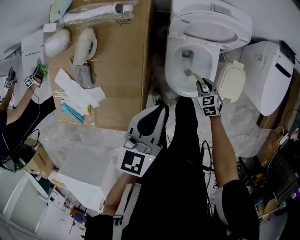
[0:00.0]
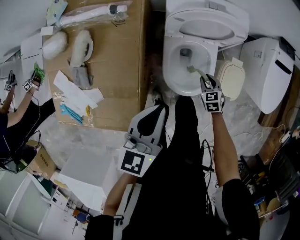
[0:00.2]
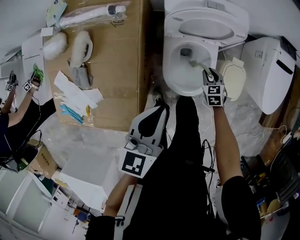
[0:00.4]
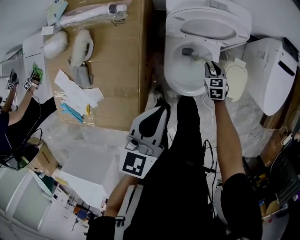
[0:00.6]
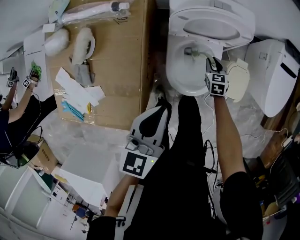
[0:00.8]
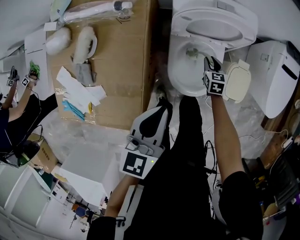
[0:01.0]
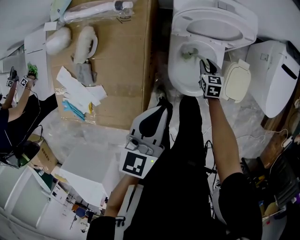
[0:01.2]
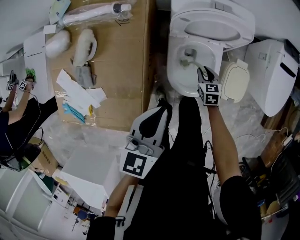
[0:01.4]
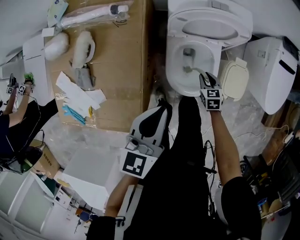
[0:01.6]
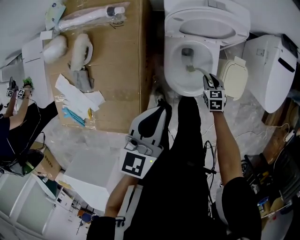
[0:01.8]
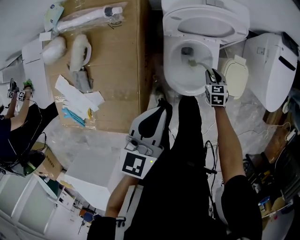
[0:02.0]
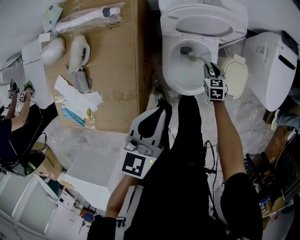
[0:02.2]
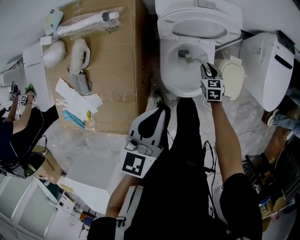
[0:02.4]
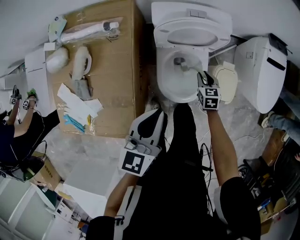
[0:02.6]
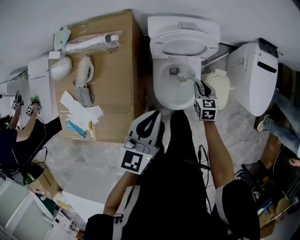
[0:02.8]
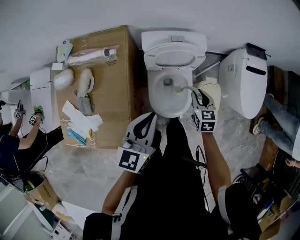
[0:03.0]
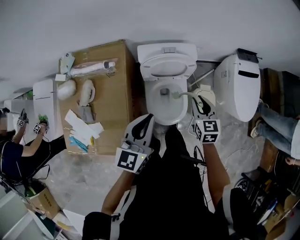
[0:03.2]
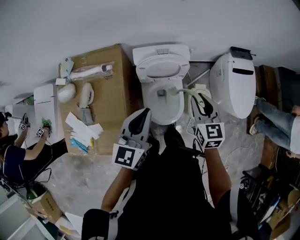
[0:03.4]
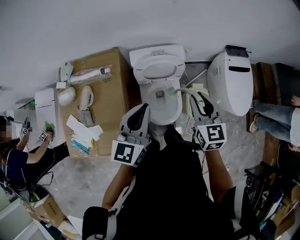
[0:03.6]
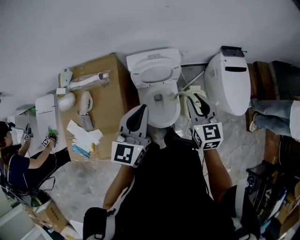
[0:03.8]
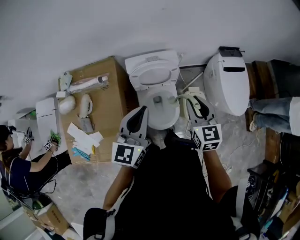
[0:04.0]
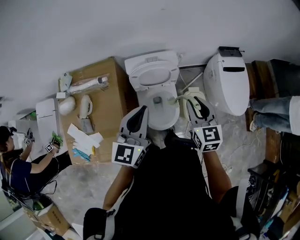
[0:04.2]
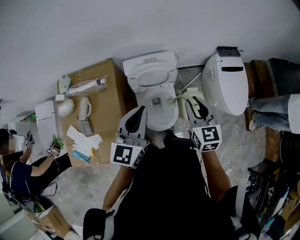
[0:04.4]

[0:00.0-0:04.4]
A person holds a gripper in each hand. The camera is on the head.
0:00.0 to 0:01.4: The right gripper shifts roughly 5 cm forward.
0:01.4 to 0:03.0: The right gripper heads upward, covering approximately 25 cm; the left gripper is displaced upward and to the right by some 15 cm.
0:03.0 to 0:04.4: The left gripper moves upward and to the right, roughly 15 cm. Meanwhile the right gripper is displaced upward by some 25 cm, and rotates approximately 20 degrees.

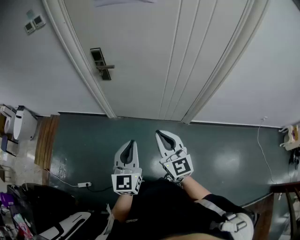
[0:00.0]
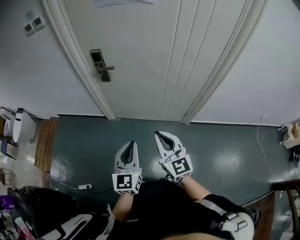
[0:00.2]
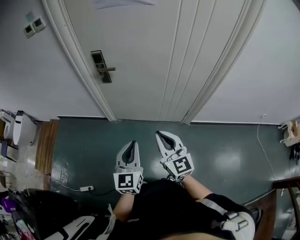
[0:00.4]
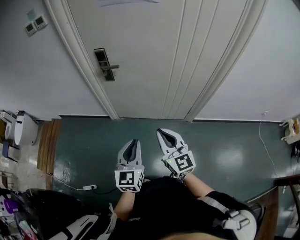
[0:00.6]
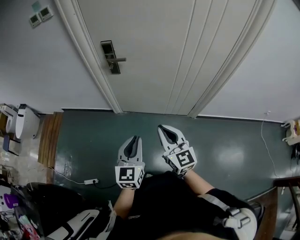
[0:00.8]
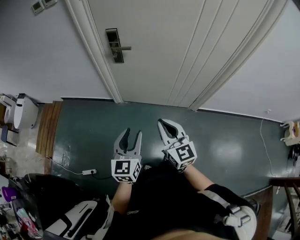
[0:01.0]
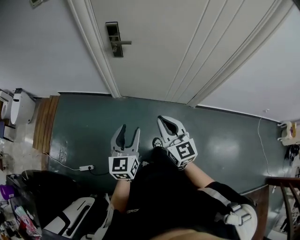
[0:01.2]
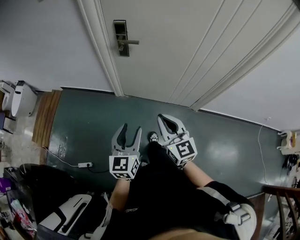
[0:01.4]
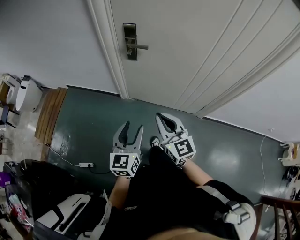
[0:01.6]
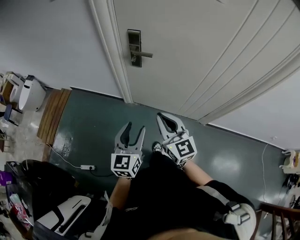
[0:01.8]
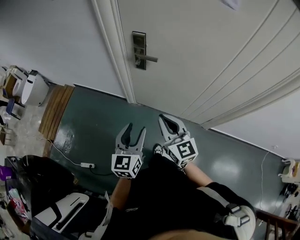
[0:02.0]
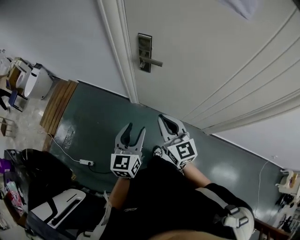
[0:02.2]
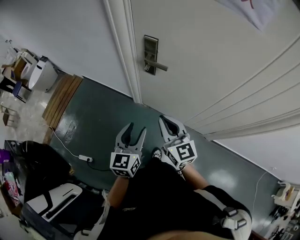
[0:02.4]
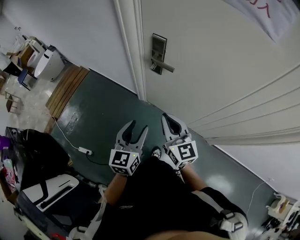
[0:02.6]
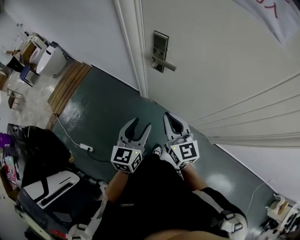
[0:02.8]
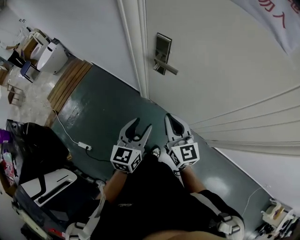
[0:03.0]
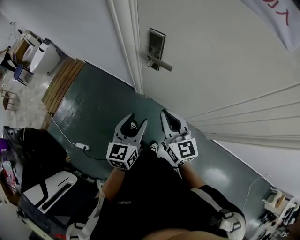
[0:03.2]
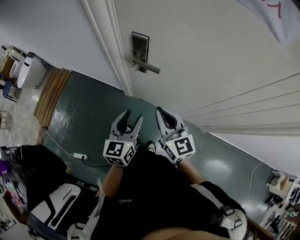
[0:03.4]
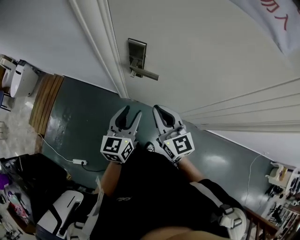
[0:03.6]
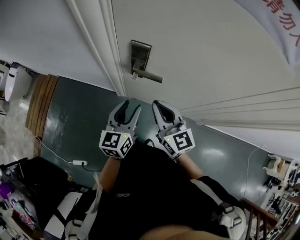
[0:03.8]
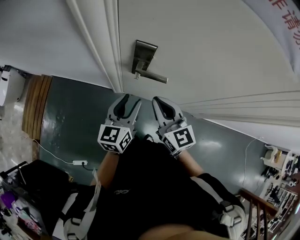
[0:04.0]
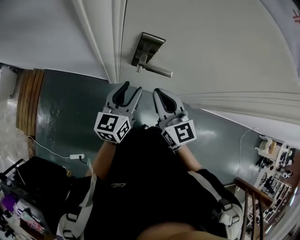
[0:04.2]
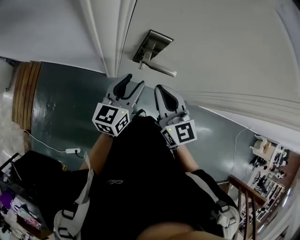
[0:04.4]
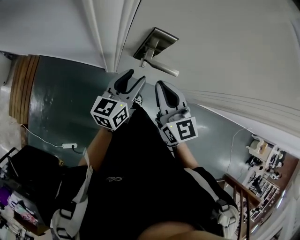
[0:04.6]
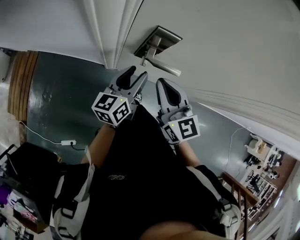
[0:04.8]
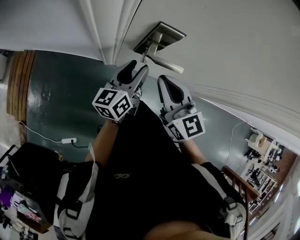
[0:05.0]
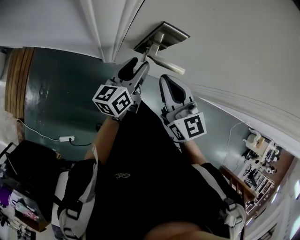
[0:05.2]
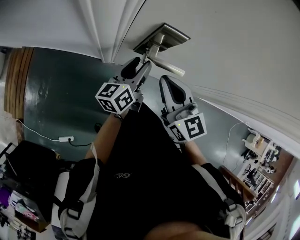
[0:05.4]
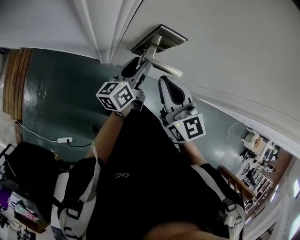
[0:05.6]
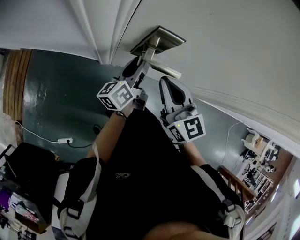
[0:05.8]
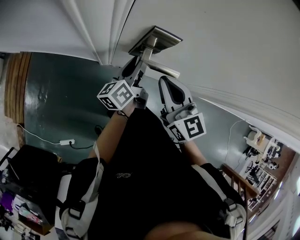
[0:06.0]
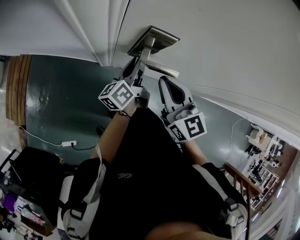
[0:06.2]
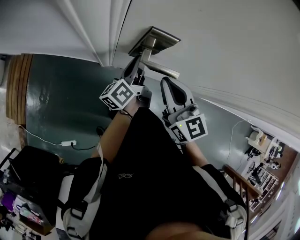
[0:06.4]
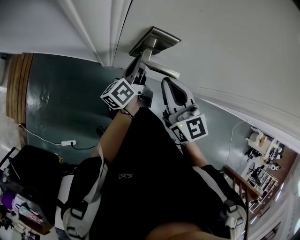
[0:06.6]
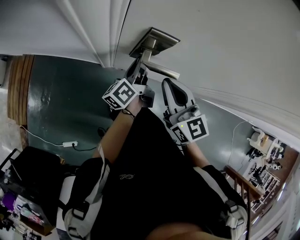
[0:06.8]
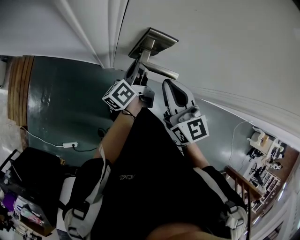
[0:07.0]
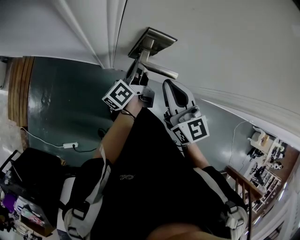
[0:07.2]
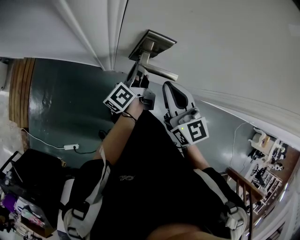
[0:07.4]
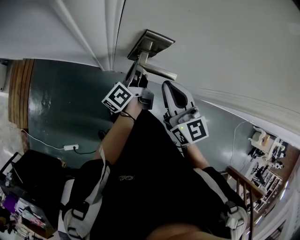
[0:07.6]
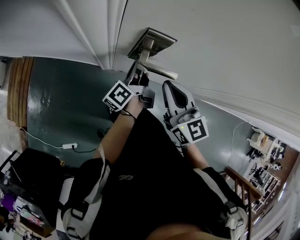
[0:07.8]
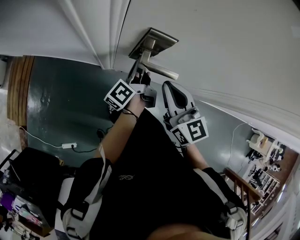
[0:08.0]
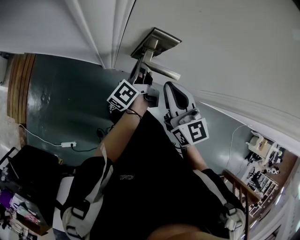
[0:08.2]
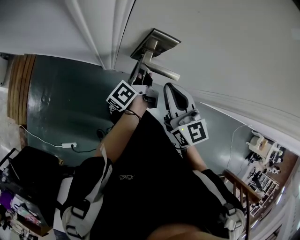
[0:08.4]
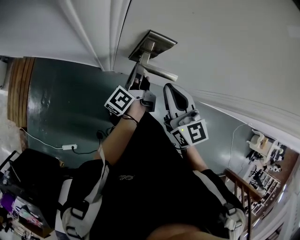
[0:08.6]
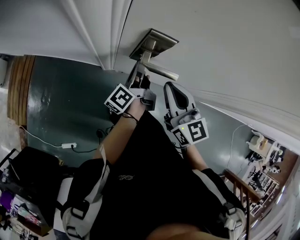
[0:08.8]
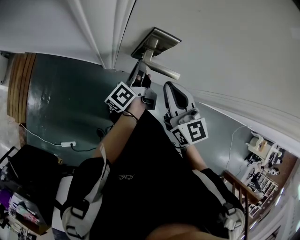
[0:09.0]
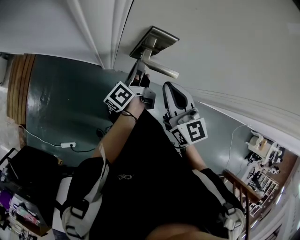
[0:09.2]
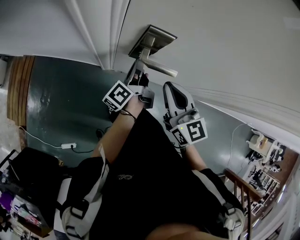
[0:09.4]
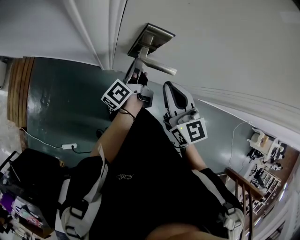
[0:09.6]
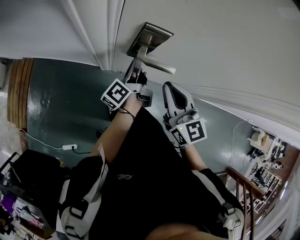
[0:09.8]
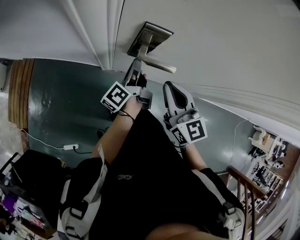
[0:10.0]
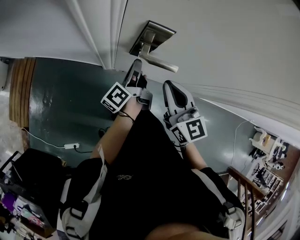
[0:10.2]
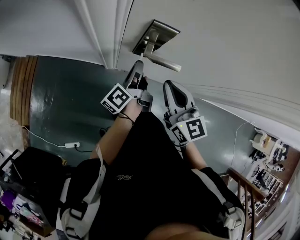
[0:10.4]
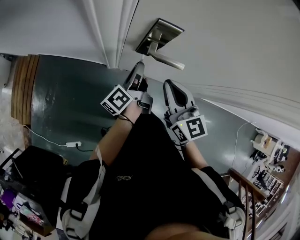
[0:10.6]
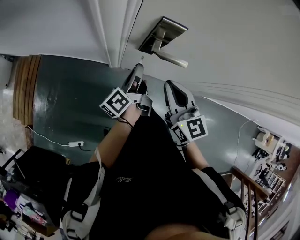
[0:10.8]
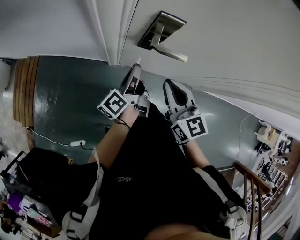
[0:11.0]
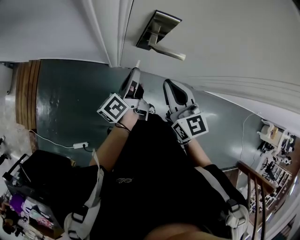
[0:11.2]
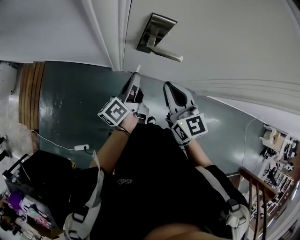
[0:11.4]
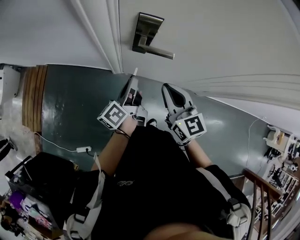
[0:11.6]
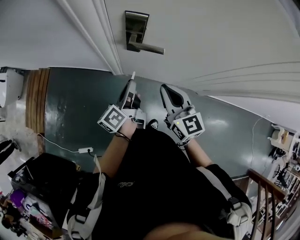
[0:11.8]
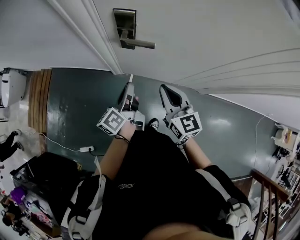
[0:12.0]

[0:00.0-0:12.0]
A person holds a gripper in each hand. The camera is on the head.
0:00.0 to 0:01.6: The left gripper is displaced to the left, forward and downward by about 15 cm, and opens up. Meanwhile the right gripper heads to the left and forward, covering about 15 cm.
0:01.6 to 0:03.0: The grippers both shift forward by about 20 cm.
0:03.0 to 0:04.4: The right gripper heads forward and to the left, covering roughly 20 cm. The left gripper goes some 25 cm forward, and turns by approximately 30 degrees.
0:04.4 to 0:06.0: The left gripper shifts roughly 10 cm downward and forward, and changes its angle by roughly 40 degrees.
0:06.0 to 0:07.6: The left gripper closes up.
0:07.6 to 0:10.4: The grippers make only small movements.
0:10.4 to 0:12.0: The left gripper travels backward by approximately 15 cm. The right gripper heads backward and to the right, covering roughly 15 cm.

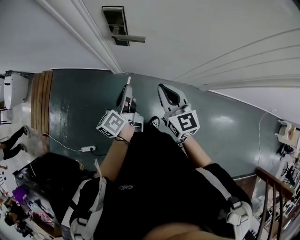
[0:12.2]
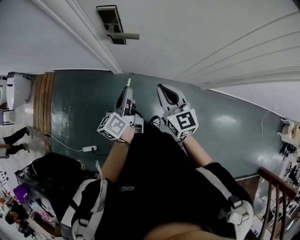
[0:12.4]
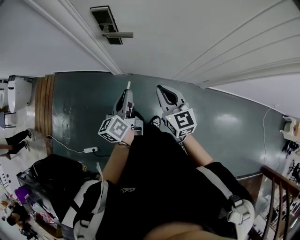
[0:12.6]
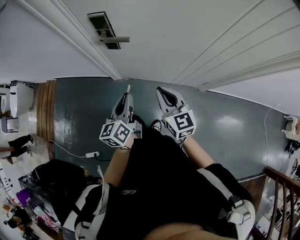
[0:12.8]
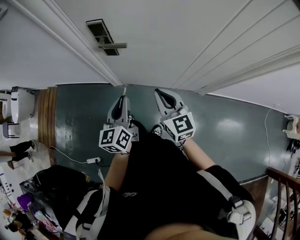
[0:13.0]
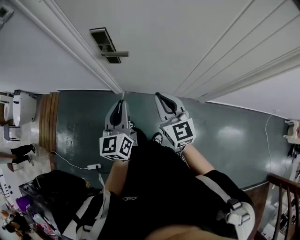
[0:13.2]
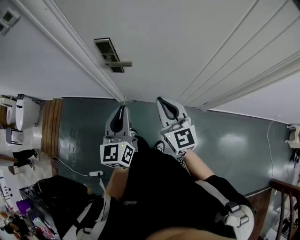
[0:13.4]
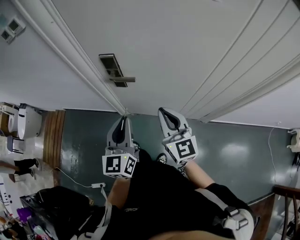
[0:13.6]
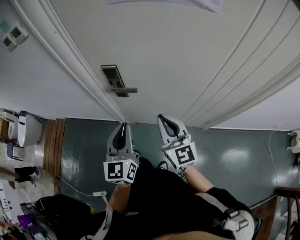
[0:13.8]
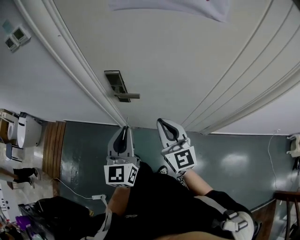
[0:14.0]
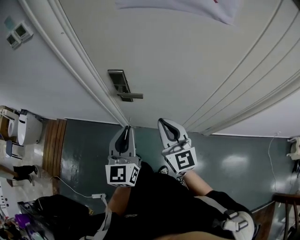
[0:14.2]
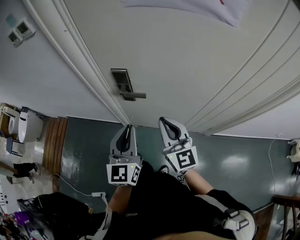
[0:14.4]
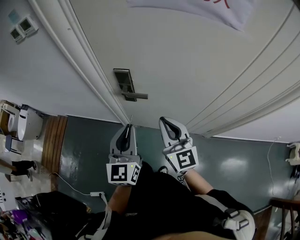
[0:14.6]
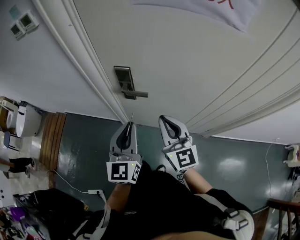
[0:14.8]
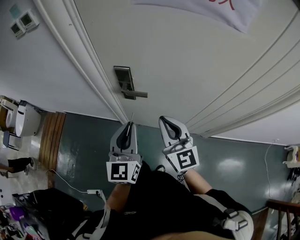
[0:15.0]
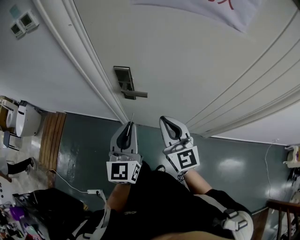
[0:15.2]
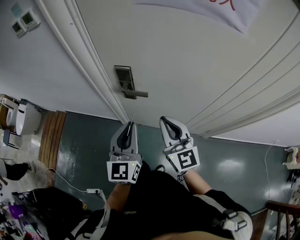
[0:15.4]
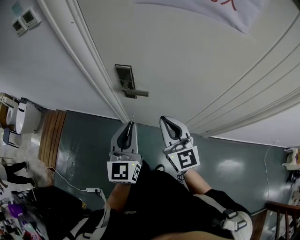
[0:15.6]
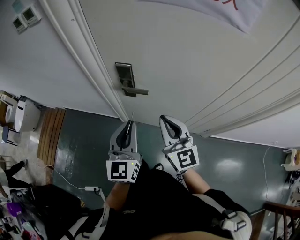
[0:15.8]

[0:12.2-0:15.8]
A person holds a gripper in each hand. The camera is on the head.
0:12.2 to 0:14.0: Both grippers travel together upward, about 15 cm. The left gripper rolls clockwise, seen from behind, by approximately 50 degrees.
0:14.0 to 0:15.8: The grippers stay close to where they were, moving slightly.

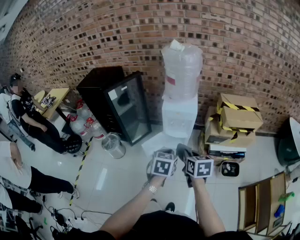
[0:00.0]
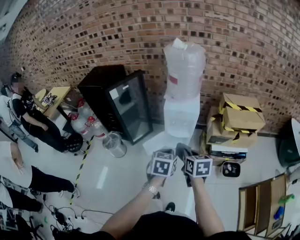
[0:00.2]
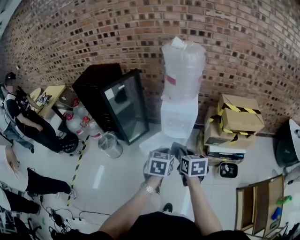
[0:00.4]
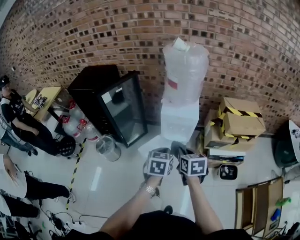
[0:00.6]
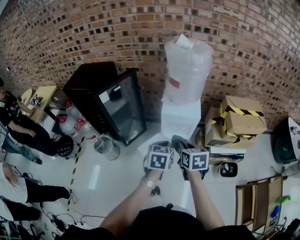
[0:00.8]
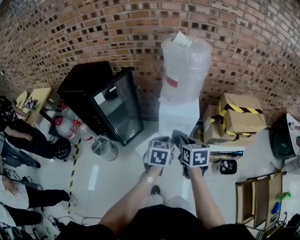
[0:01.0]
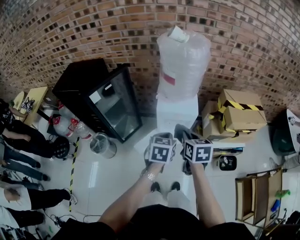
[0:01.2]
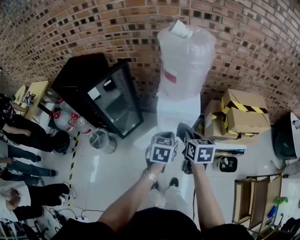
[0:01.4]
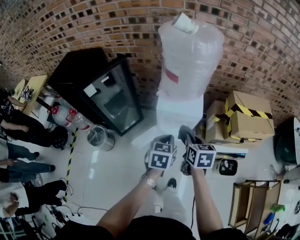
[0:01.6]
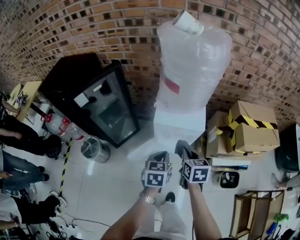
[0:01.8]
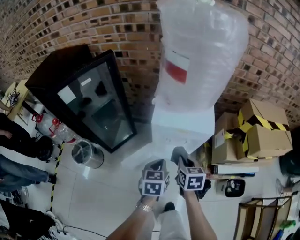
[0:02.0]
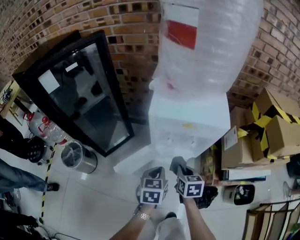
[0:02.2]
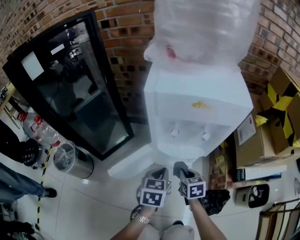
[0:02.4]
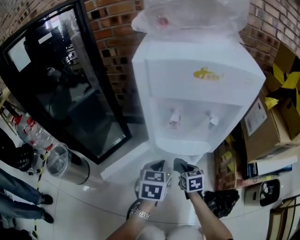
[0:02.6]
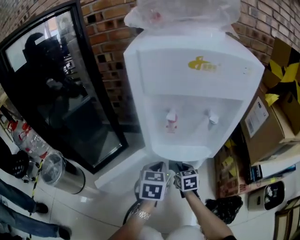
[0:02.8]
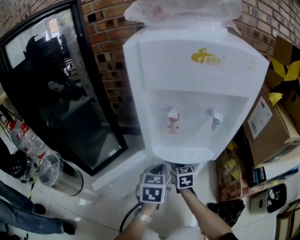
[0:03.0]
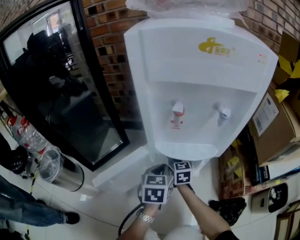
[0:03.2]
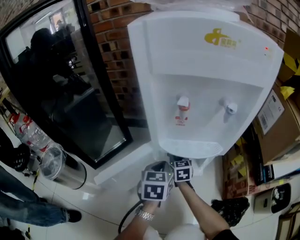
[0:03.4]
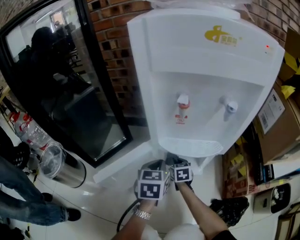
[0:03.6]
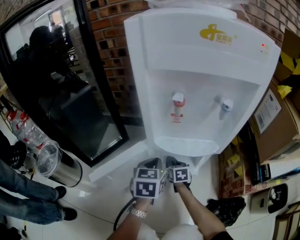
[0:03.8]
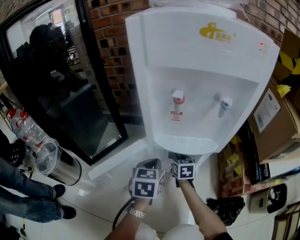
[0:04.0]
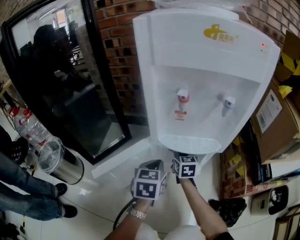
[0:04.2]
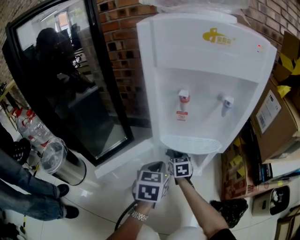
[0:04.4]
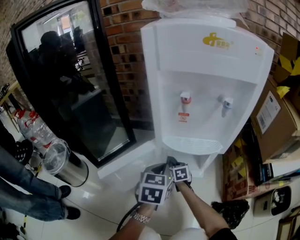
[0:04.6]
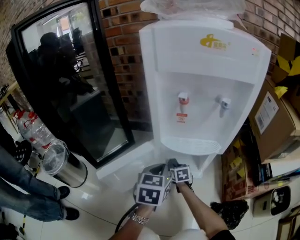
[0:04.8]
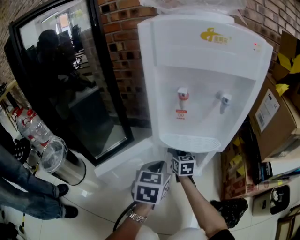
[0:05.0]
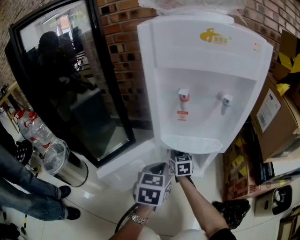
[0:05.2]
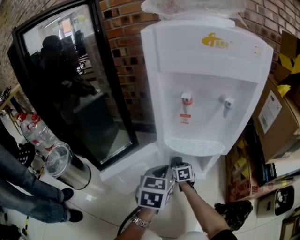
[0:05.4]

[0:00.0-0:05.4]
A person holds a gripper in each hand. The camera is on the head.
0:00.0 to 0:01.4: The grippers both shift forward by some 25 cm.
0:01.4 to 0:02.8: The two grippers go some 70 cm downward.
0:02.8 to 0:04.0: The left gripper changes place by some 5 cm.
0:04.0 to 0:05.4: The right gripper moves up and down over about 10 cm, changing direction 3 times, while the left gripper shifts by roughly 5 cm.
